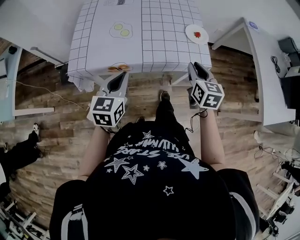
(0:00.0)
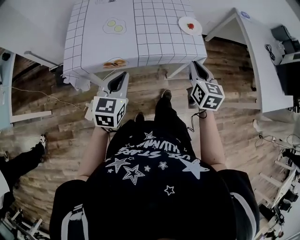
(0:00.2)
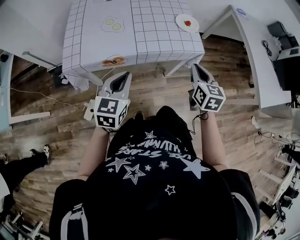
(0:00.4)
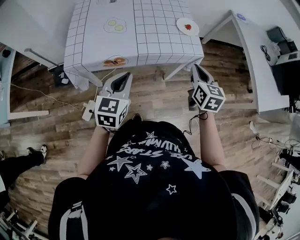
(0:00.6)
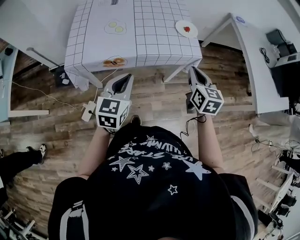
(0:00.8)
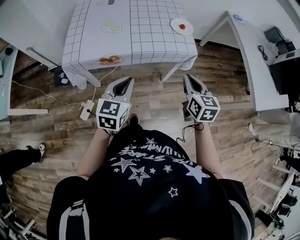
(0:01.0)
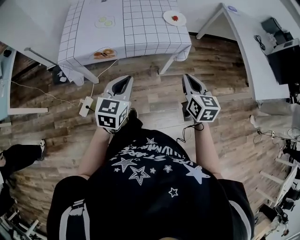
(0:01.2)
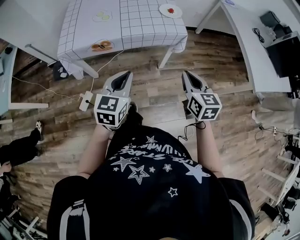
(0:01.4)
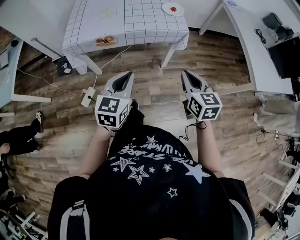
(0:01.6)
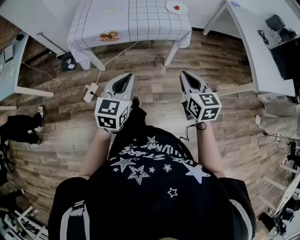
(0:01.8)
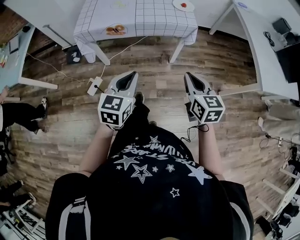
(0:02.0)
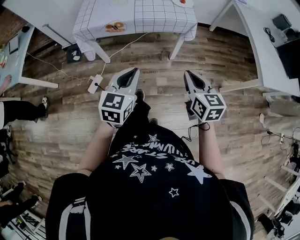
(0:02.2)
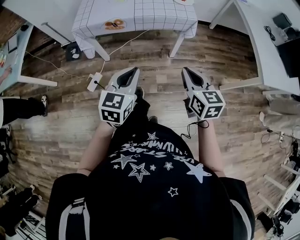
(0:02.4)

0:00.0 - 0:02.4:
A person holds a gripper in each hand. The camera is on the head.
0:00.0 - 0:01.2: The right gripper travels backward and to the right by about 20 cm. The left gripper heads to the right and backward, covering approximately 15 cm.
0:01.2 - 0:02.4: Both grippers travel together backward, about 15 cm.

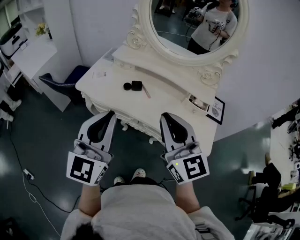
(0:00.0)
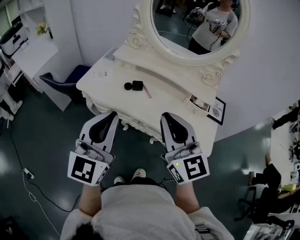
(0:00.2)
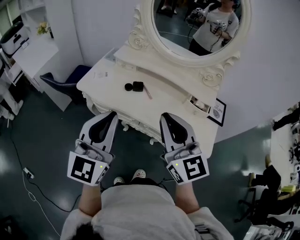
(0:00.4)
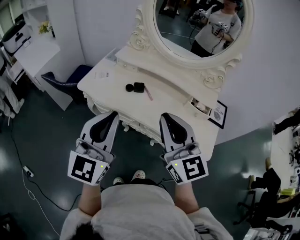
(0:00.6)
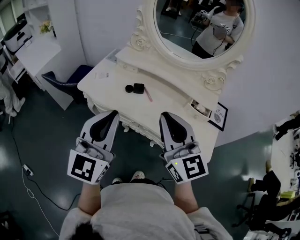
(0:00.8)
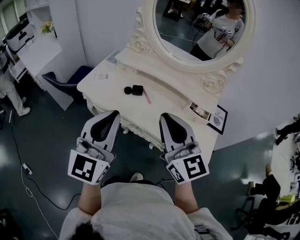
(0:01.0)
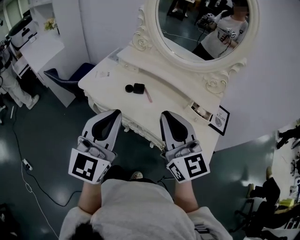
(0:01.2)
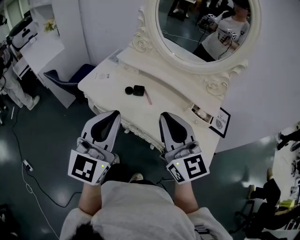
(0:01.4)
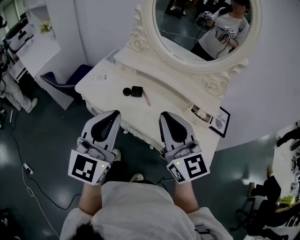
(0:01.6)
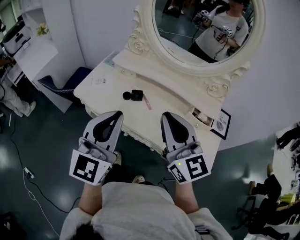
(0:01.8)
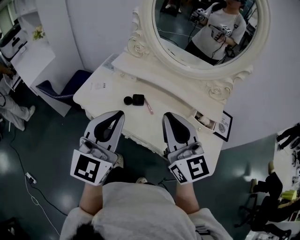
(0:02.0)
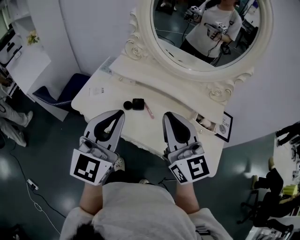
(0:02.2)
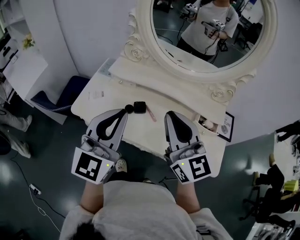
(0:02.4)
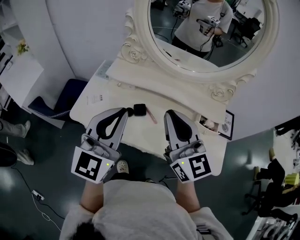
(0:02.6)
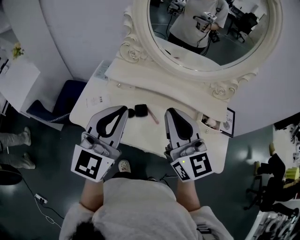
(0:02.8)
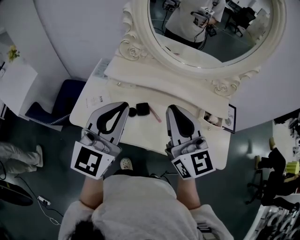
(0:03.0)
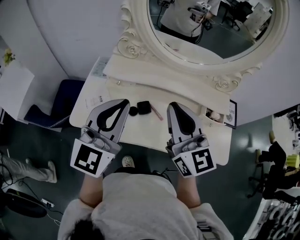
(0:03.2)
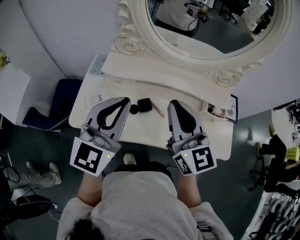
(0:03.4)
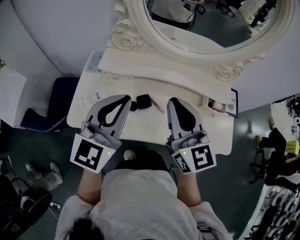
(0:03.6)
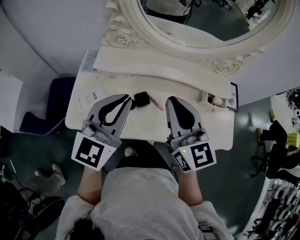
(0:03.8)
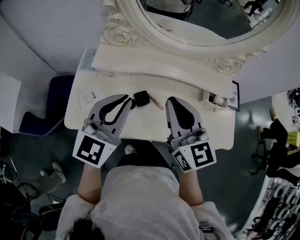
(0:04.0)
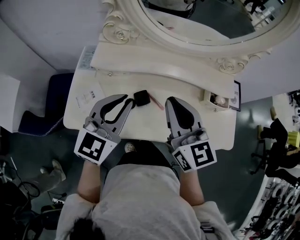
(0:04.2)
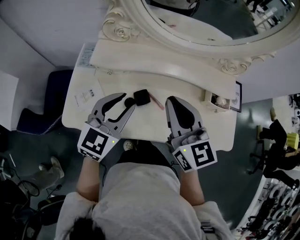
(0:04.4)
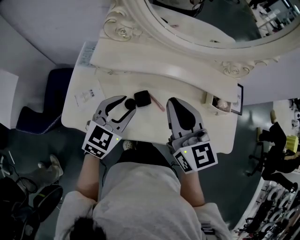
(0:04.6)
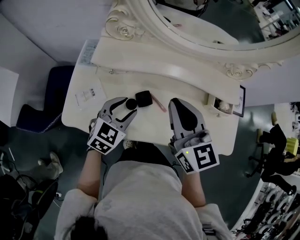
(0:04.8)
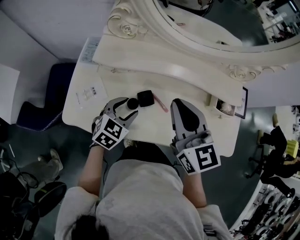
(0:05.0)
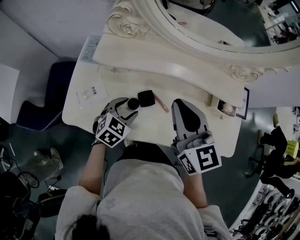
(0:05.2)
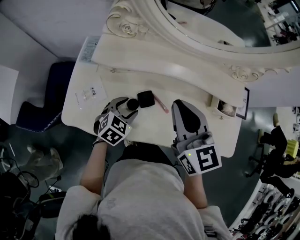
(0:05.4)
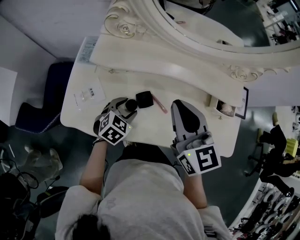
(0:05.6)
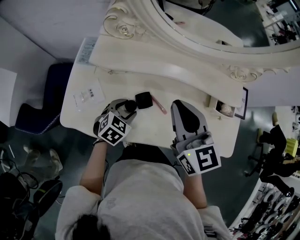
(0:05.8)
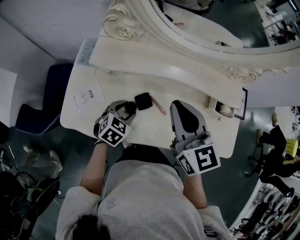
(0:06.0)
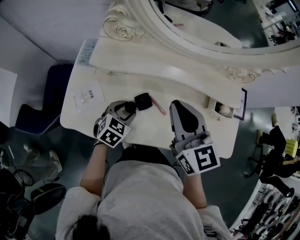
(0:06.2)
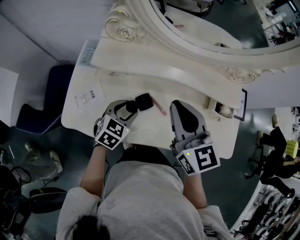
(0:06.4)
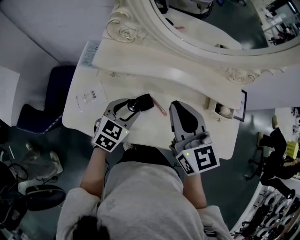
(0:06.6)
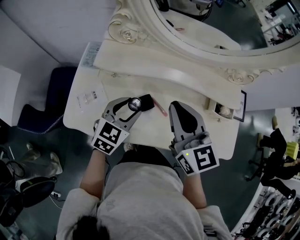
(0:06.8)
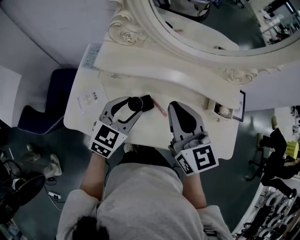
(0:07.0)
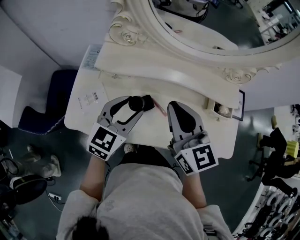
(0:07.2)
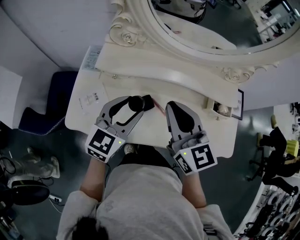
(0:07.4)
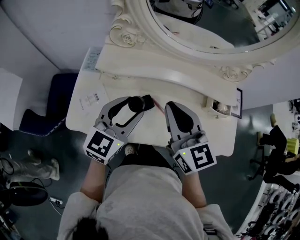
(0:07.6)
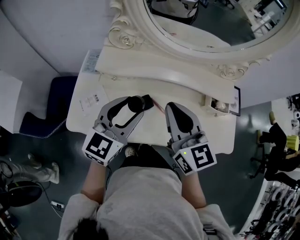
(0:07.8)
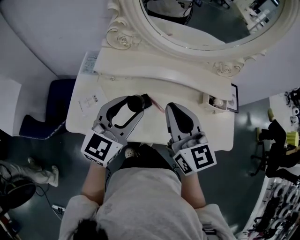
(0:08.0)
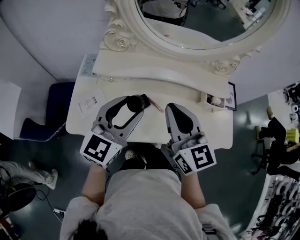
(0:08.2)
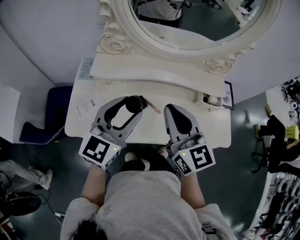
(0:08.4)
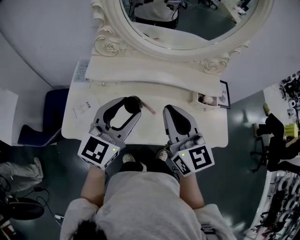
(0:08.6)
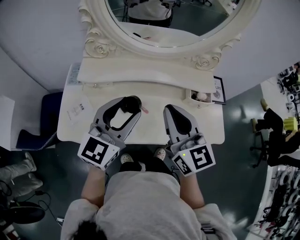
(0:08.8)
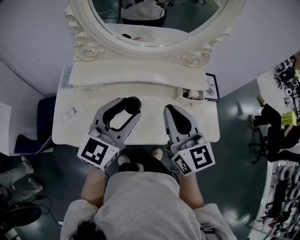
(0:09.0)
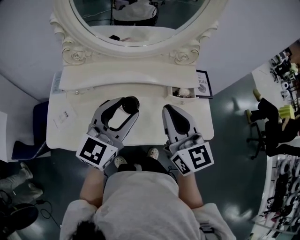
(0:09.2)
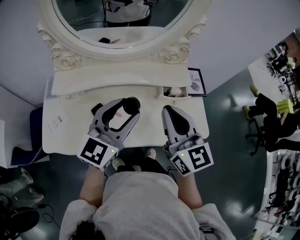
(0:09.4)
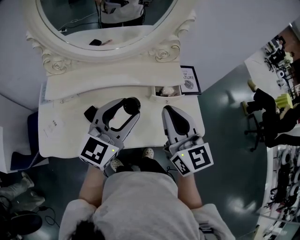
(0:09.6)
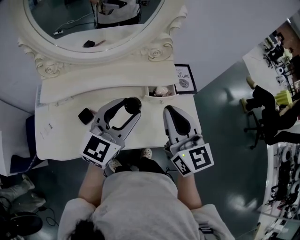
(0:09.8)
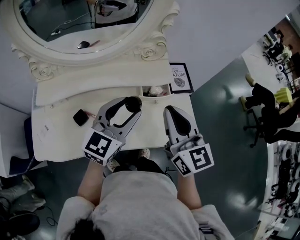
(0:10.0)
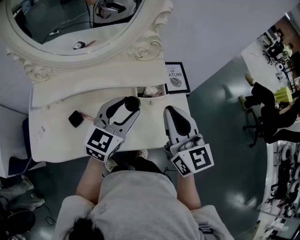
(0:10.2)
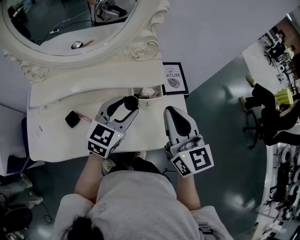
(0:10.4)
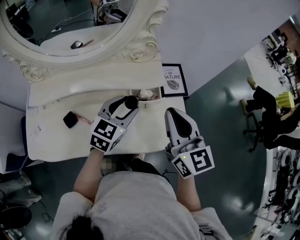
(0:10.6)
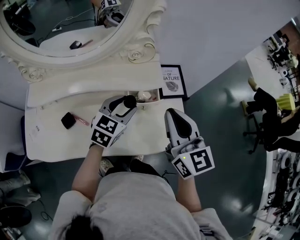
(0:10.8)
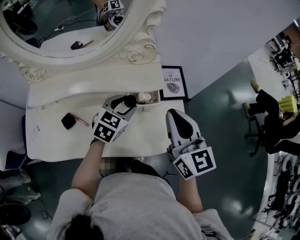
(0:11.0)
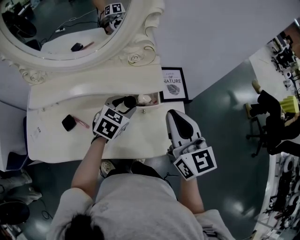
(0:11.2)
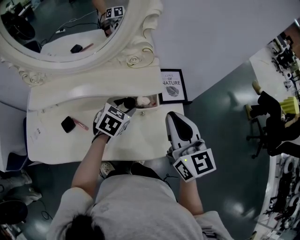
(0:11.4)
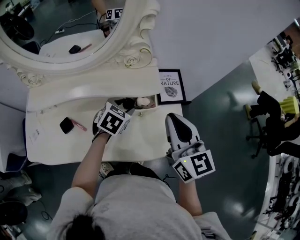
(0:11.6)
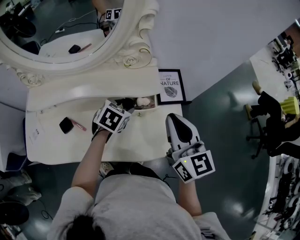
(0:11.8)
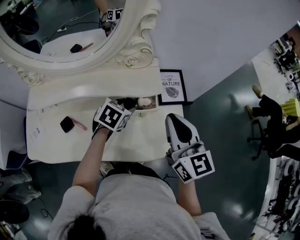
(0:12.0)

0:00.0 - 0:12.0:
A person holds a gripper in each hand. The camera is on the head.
0:00.0 - 0:01.6: Both grippers travel together forward, some 5 cm.
0:01.6 - 0:03.0: The left gripper goes some 20 cm forward. The right gripper travels forward and to the left by some 15 cm.
0:03.0 - 0:04.4: The right gripper travels downward and forward by approximately 10 cm. Meanwhile the left gripper travels downward and forward by about 15 cm, swivels about 20 degrees, and opens its fingers.
0:04.4 - 0:06.0: The left gripper is displaced downward by some 20 cm, angles its fingers downward, by approximately 30 degrees, and opens its fingers.
0:06.0 - 0:07.6: The left gripper shifts some 20 cm upward, and tilts its fingers roughly 40 degrees upward.
0:07.6 - 0:09.0: The left gripper goes roughly 15 cm to the right and upward. The right gripper shifts roughly 10 cm to the right.
0:09.0 - 0:10.4: The left gripper travels to the right, forward and downward by about 25 cm, while the right gripper heads to the right, covering some 25 cm.
0:10.4 - 0:12.0: The left gripper travels downward and forward by roughly 15 cm, and tips its fingers downward by roughly 40 degrees, while the right gripper ends up approximately 5 cm from where it was.

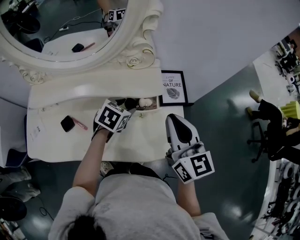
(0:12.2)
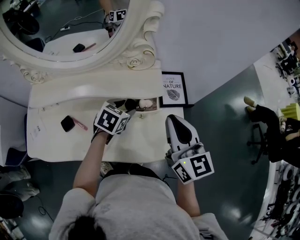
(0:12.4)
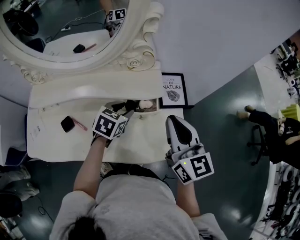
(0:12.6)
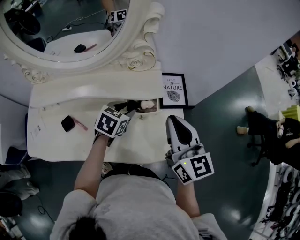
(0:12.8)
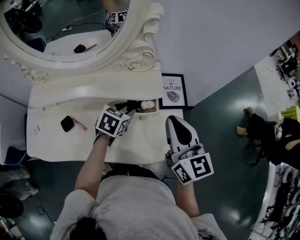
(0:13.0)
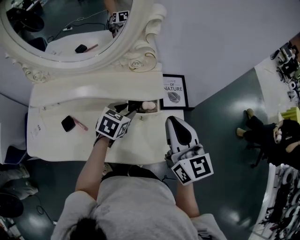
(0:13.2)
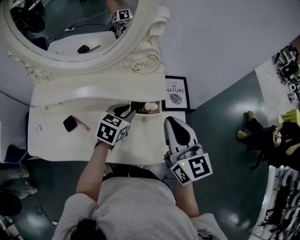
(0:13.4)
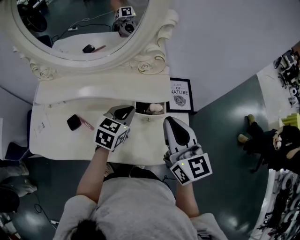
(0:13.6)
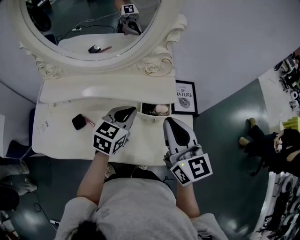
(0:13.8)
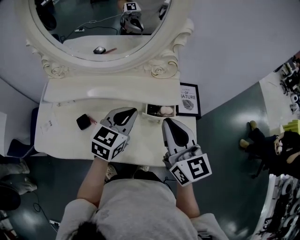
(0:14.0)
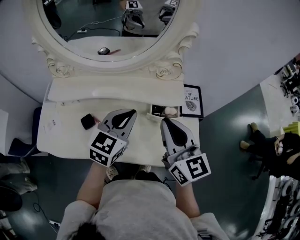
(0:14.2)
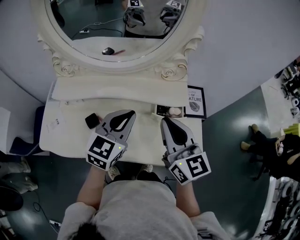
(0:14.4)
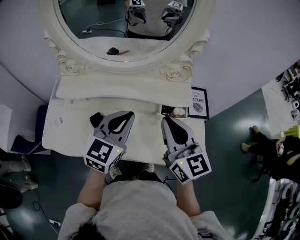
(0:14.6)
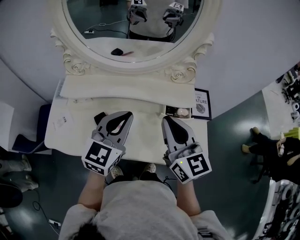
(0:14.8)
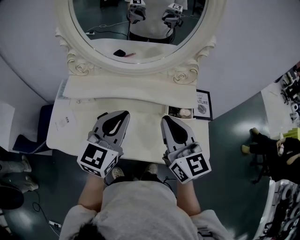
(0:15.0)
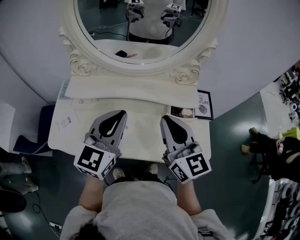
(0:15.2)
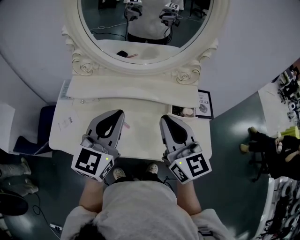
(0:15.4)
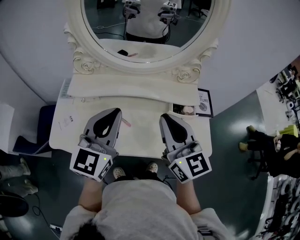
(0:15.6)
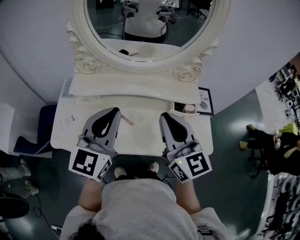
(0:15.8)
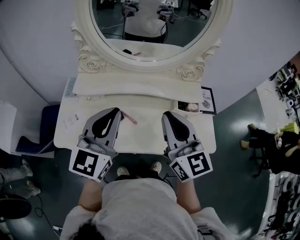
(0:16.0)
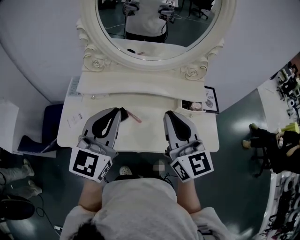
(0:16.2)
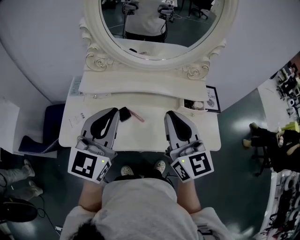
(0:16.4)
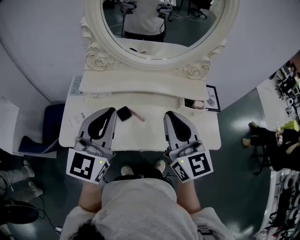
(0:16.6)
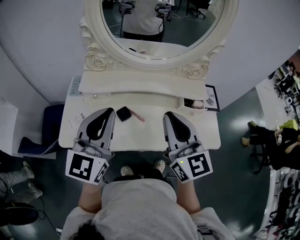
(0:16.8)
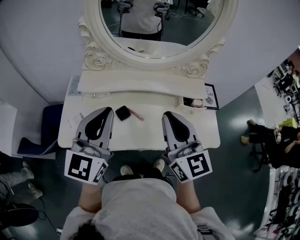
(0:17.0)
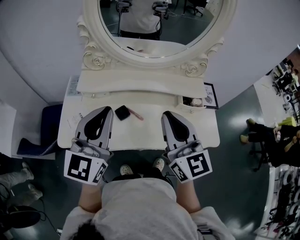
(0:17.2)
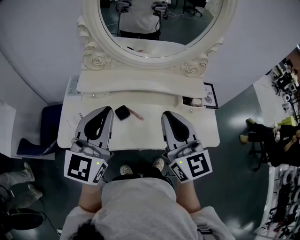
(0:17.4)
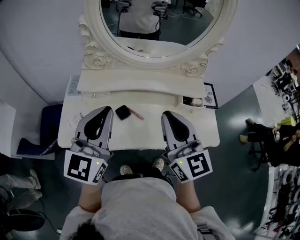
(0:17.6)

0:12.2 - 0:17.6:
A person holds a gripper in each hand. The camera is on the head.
0:12.2 - 0:13.6: The left gripper goes about 5 cm upward, swivels about 20 degrees, and closes.
0:13.6 - 0:15.0: The left gripper travels to the left, upward and backward by about 25 cm, and changes its angle by approximately 30 degrees. The right gripper heads to the left, covering roughly 15 cm.
0:15.0 - 0:16.2: The left gripper heads to the left and backward, covering some 15 cm. Meanwhile the right gripper travels to the left by some 10 cm.
0:16.2 - 0:17.6: The left gripper moves approximately 5 cm.

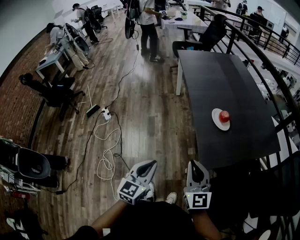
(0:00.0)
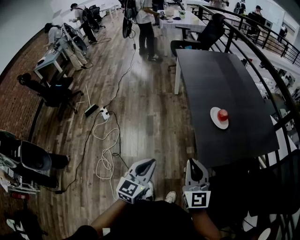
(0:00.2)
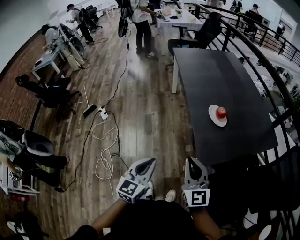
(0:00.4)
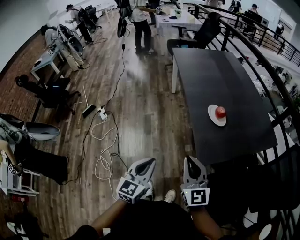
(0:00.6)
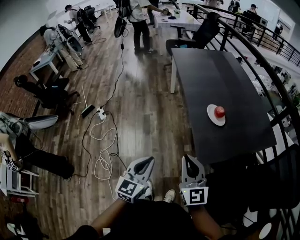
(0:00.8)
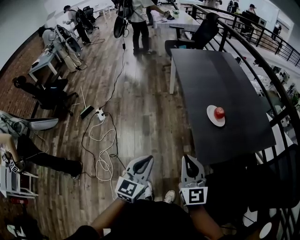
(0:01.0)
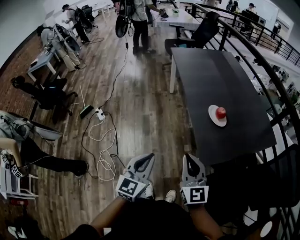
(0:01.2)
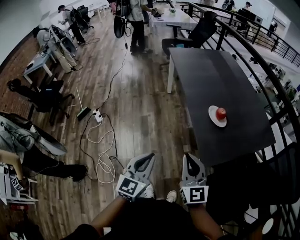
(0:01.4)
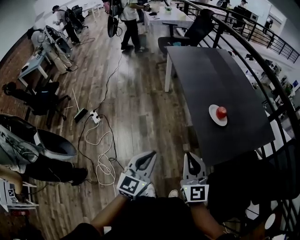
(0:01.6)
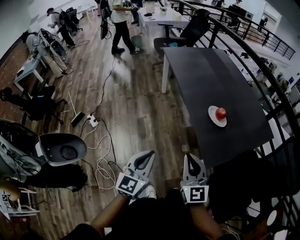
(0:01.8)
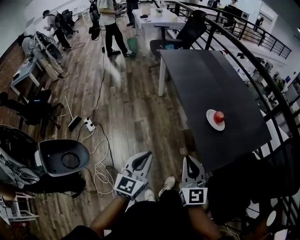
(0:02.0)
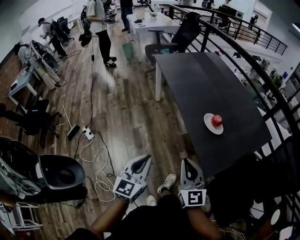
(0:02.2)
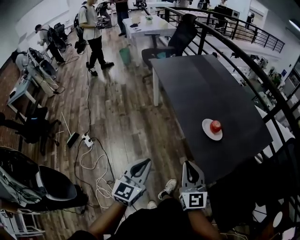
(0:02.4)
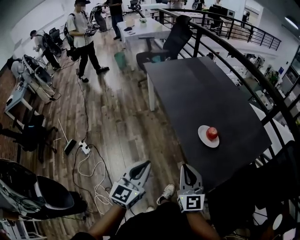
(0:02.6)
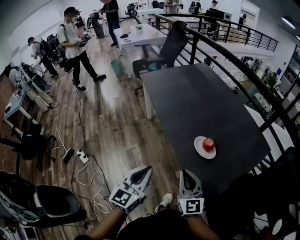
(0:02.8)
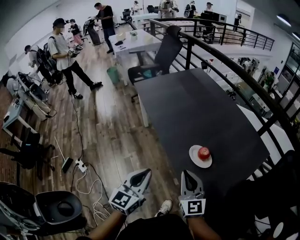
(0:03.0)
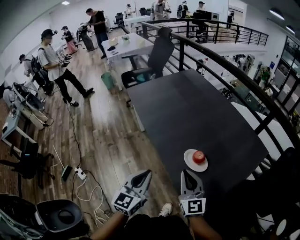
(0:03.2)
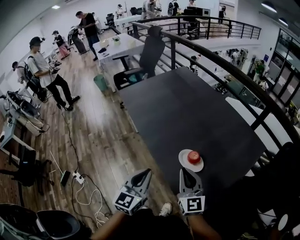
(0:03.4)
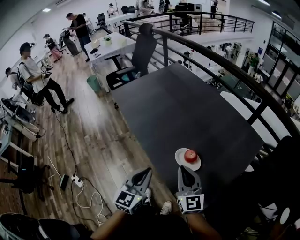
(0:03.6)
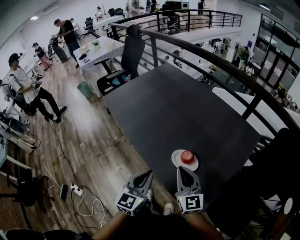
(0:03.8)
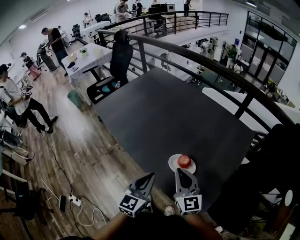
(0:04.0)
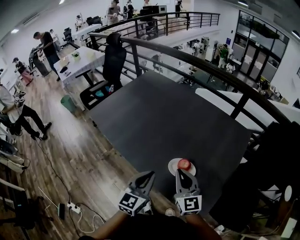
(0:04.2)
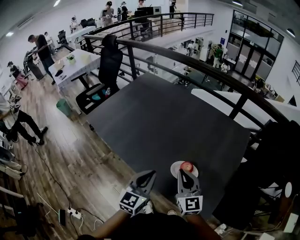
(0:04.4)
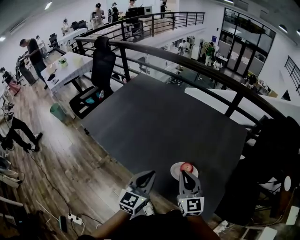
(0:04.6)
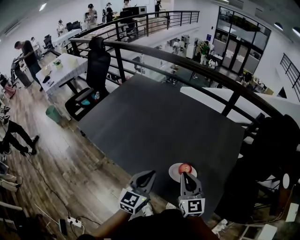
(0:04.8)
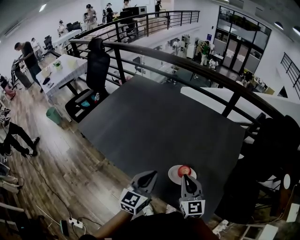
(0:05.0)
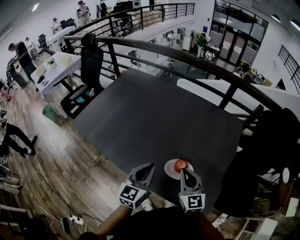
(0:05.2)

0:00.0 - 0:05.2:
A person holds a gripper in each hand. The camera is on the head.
0:00.0 - 0:01.8: Both grippers travel together to the left and forward, about 10 cm.
0:01.8 - 0:03.4: The right gripper travels forward and to the right by about 30 cm; the left gripper goes approximately 30 cm forward.
0:03.4 - 0:05.2: The right gripper ends up some 10 cm from where it was, and turns by some 30 degrees; the left gripper shifts by about 20 cm, and turns by about 30 degrees.
